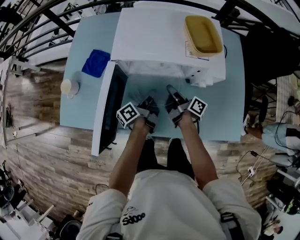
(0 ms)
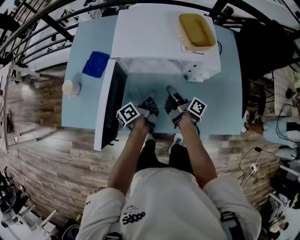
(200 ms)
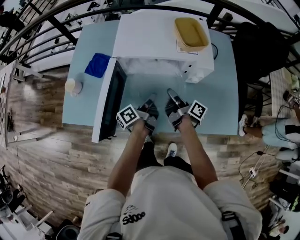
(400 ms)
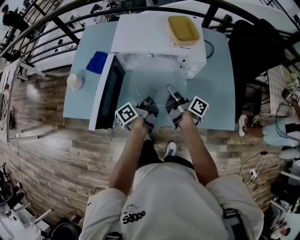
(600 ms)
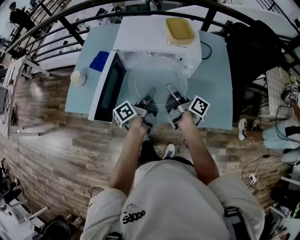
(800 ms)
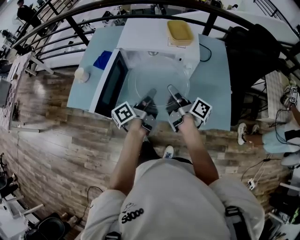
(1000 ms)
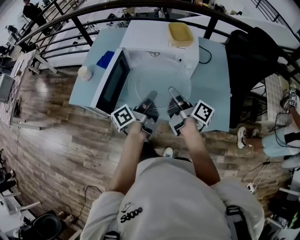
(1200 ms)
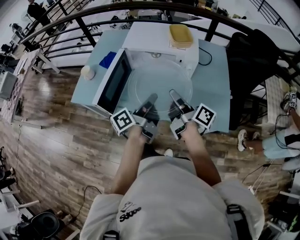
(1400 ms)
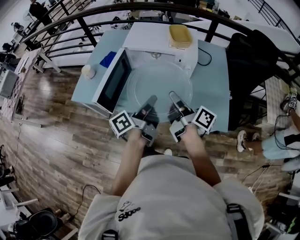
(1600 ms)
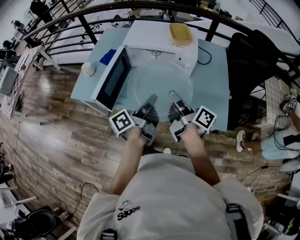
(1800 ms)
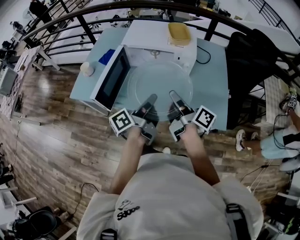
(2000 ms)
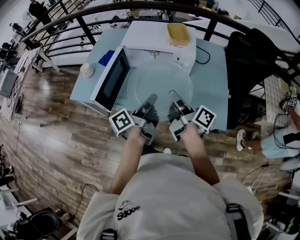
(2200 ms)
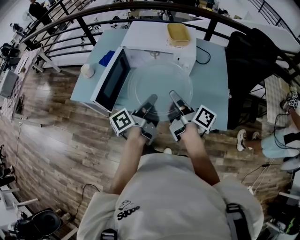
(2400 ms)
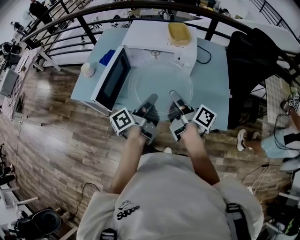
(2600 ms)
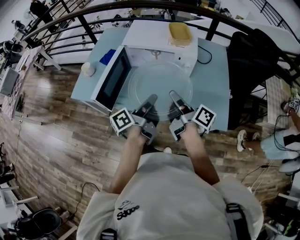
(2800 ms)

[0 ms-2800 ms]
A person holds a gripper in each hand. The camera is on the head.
0 ms to 1400 ms: The two grippers go approximately 30 cm backward and upward.
1400 ms to 2800 ms: The grippers make only small movements.

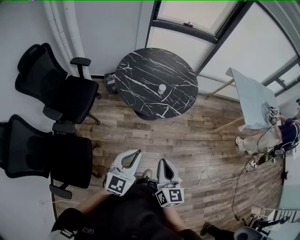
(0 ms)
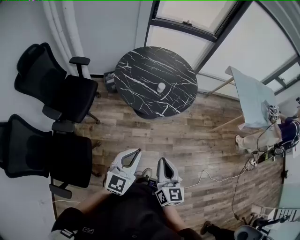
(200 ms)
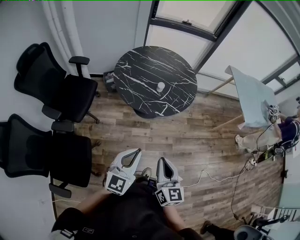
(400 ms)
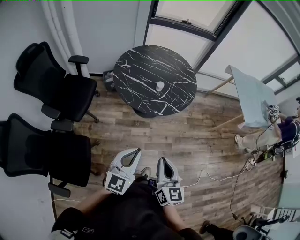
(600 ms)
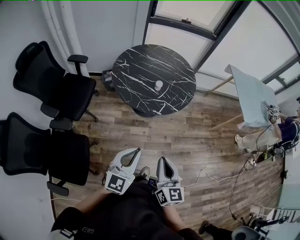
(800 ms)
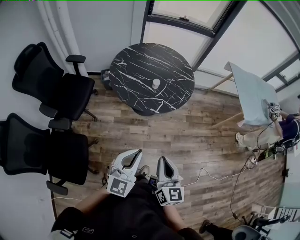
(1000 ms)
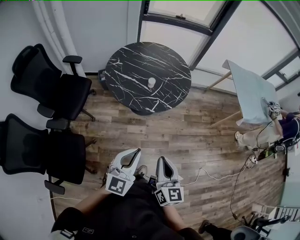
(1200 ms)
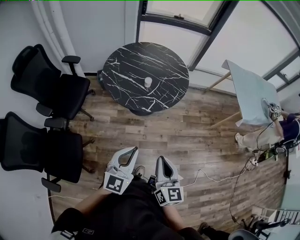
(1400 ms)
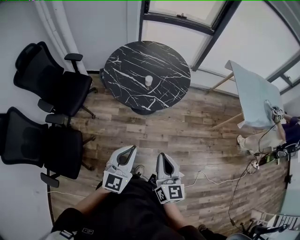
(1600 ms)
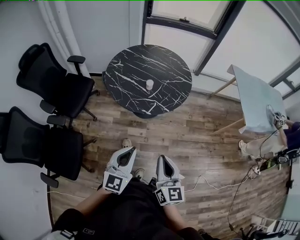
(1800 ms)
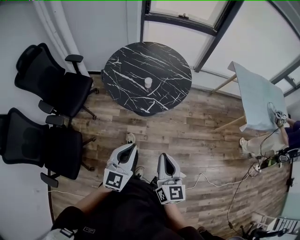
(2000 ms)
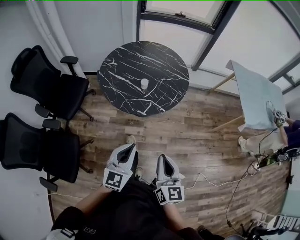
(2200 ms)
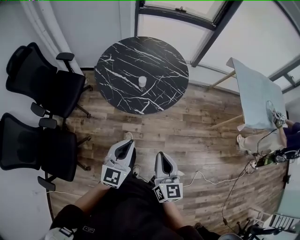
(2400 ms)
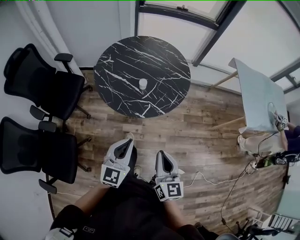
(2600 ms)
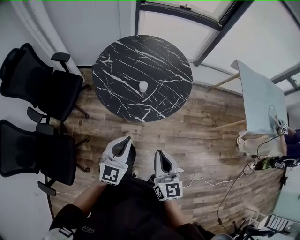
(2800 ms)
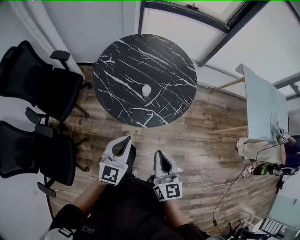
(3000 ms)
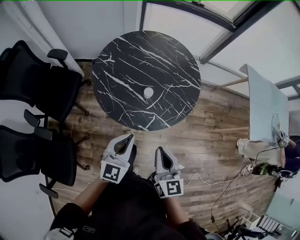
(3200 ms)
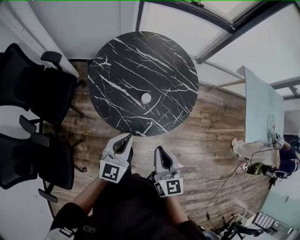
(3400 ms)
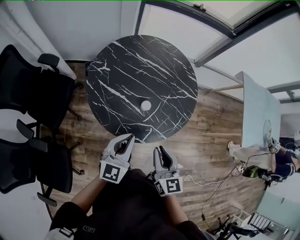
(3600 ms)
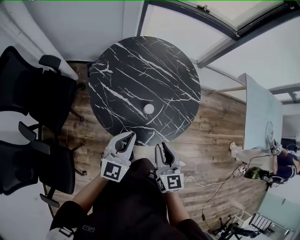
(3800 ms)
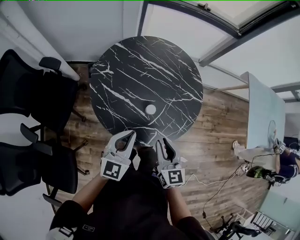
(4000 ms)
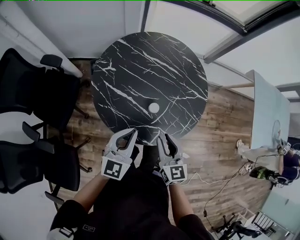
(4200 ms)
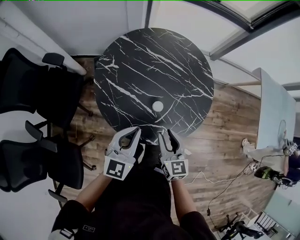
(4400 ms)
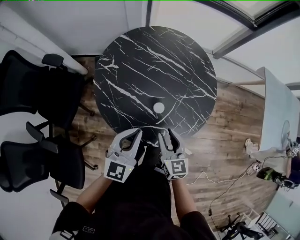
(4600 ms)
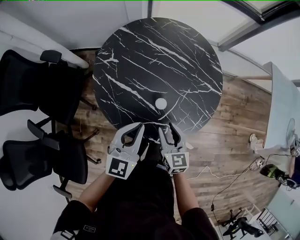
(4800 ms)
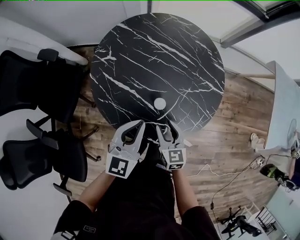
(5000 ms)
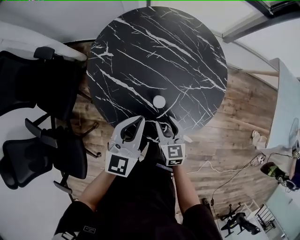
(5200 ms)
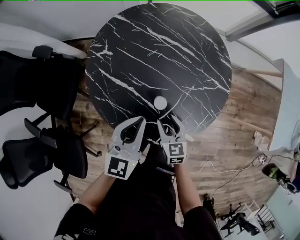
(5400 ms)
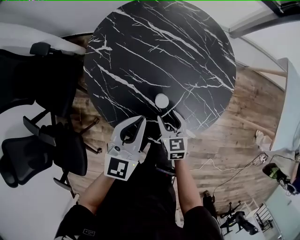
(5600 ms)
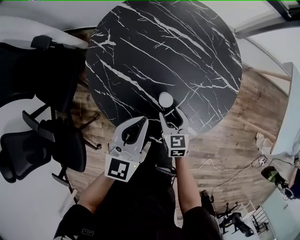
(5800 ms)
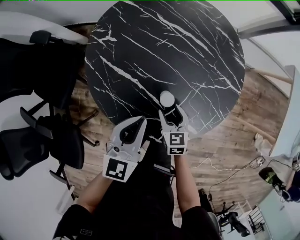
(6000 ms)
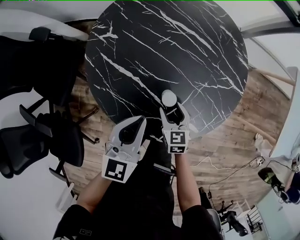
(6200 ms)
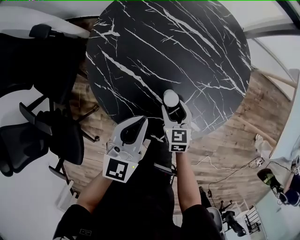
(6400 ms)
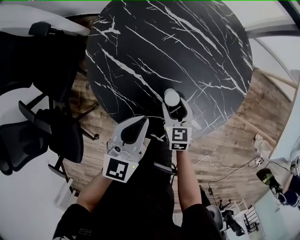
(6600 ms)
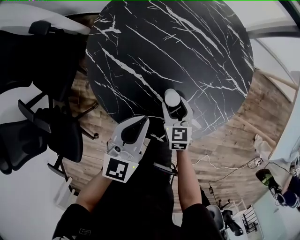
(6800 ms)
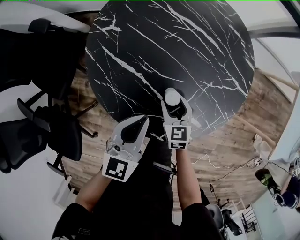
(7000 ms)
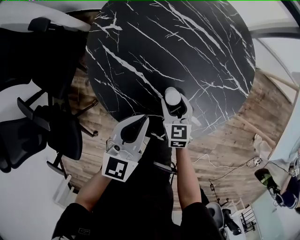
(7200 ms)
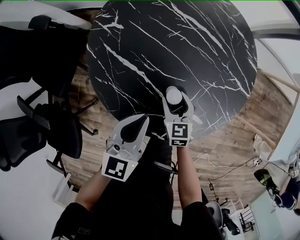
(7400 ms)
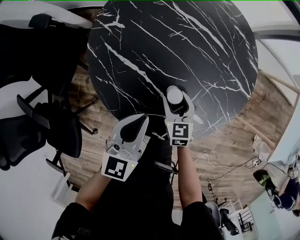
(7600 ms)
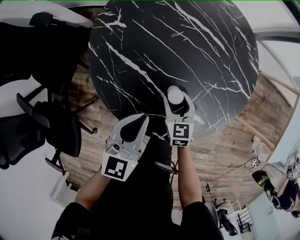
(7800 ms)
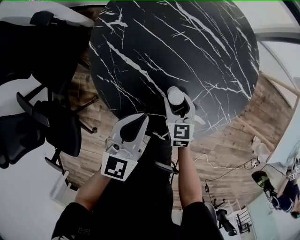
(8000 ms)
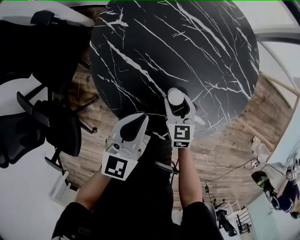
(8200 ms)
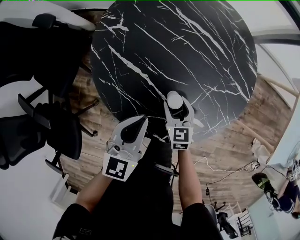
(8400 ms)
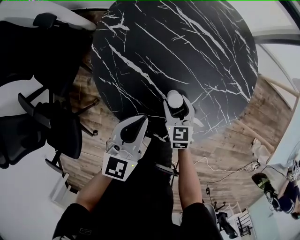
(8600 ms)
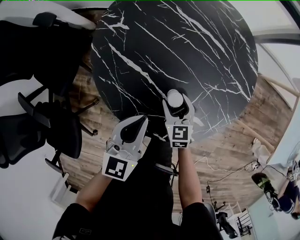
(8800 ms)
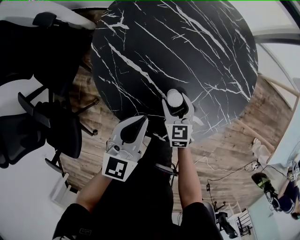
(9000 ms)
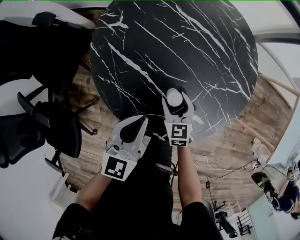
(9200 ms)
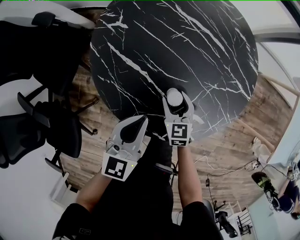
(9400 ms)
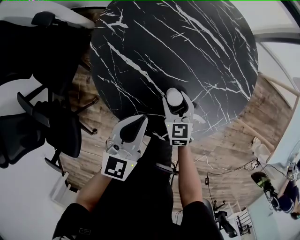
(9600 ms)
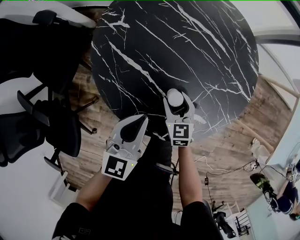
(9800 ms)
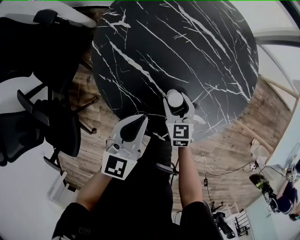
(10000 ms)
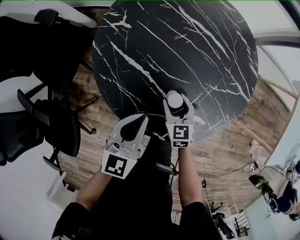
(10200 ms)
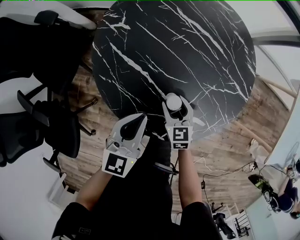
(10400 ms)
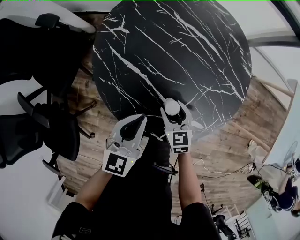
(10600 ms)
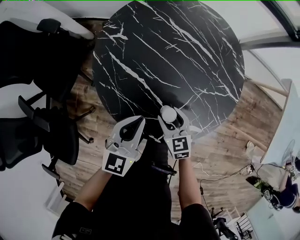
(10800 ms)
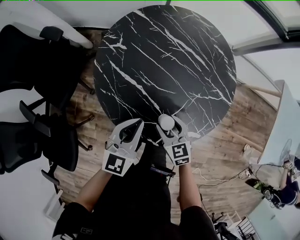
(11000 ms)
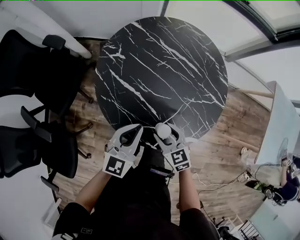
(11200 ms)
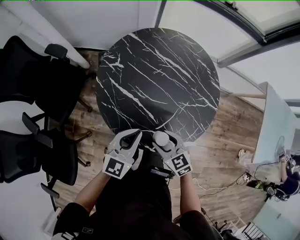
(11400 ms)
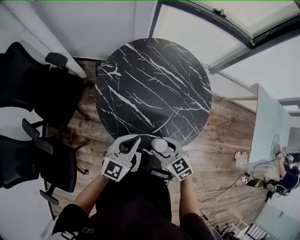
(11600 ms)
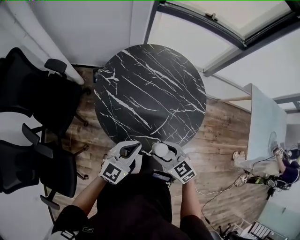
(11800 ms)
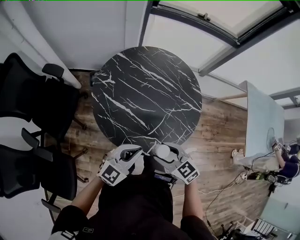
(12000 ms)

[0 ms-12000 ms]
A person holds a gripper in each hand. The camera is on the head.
0 ms to 1600 ms: The two grippers go some 15 cm to the right.
1600 ms to 3000 ms: Both grippers move forward, roughly 20 cm.
3000 ms to 4400 ms: The left gripper heads forward, covering approximately 20 cm. The right gripper goes roughly 25 cm forward and downward, and opens its fingers.
4400 ms to 6000 ms: The left gripper heads downward and forward, covering approximately 10 cm, while the right gripper travels downward by approximately 20 cm, swivels approximately 20 degrees, and opens its fingers.
6000 ms to 7600 ms: The grippers make only small movements.
7600 ms to 9000 ms: The two grippers keep their place.
9000 ms to 10400 ms: Both grippers stay about where they are.
10400 ms to 12000 ms: The right gripper goes roughly 30 cm upward and backward, and swivels roughly 20 degrees; the left gripper shifts some 15 cm upward and backward, and rotates about 30 degrees.

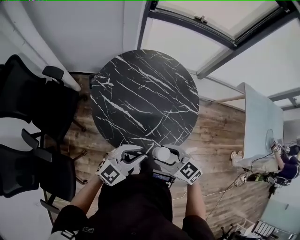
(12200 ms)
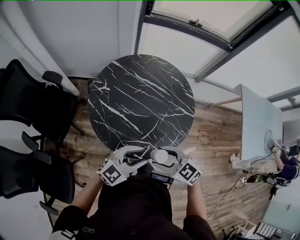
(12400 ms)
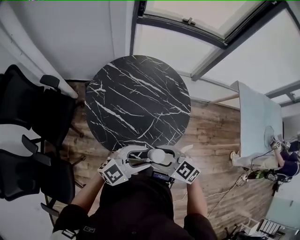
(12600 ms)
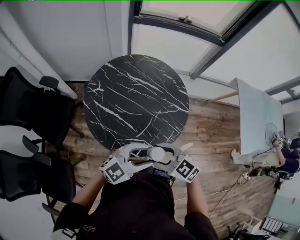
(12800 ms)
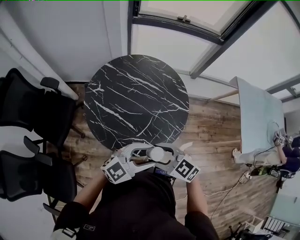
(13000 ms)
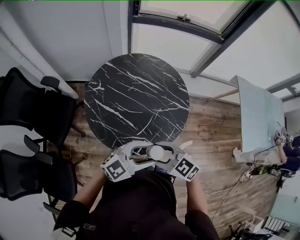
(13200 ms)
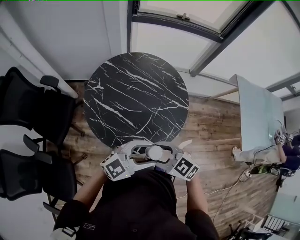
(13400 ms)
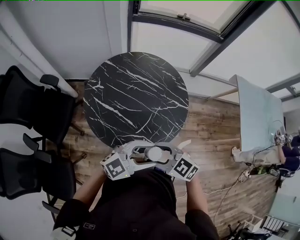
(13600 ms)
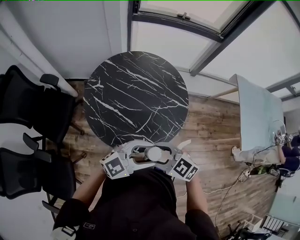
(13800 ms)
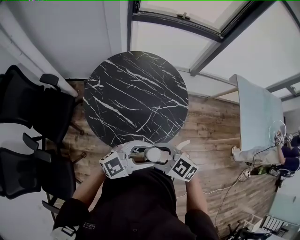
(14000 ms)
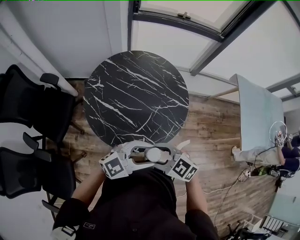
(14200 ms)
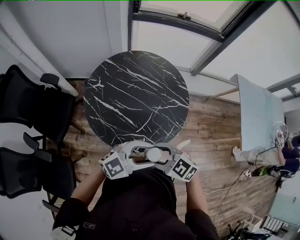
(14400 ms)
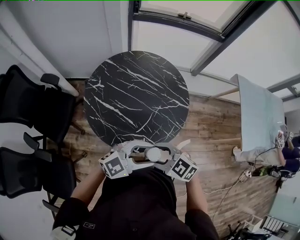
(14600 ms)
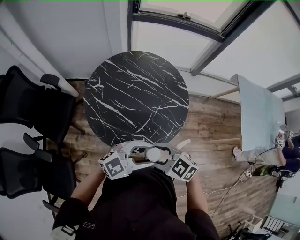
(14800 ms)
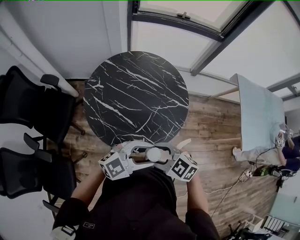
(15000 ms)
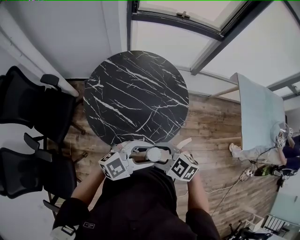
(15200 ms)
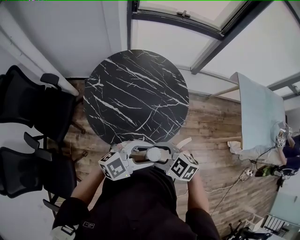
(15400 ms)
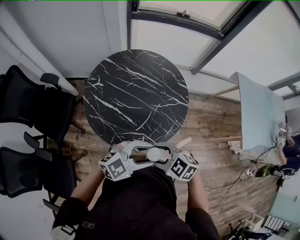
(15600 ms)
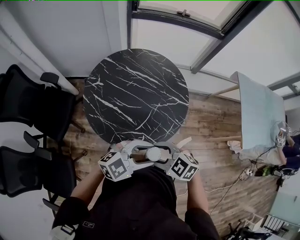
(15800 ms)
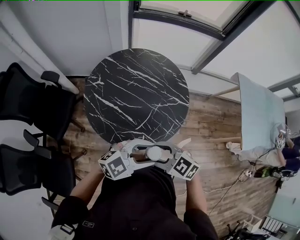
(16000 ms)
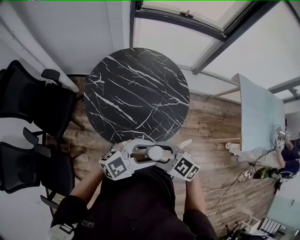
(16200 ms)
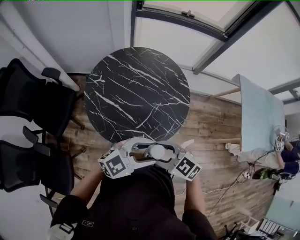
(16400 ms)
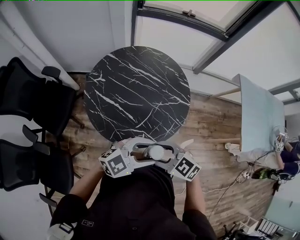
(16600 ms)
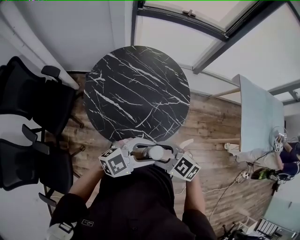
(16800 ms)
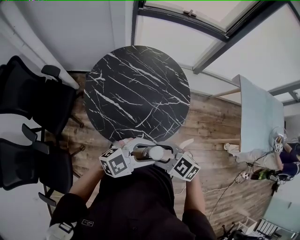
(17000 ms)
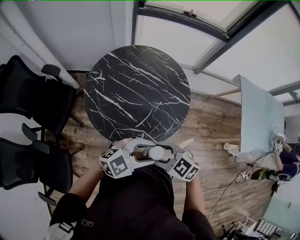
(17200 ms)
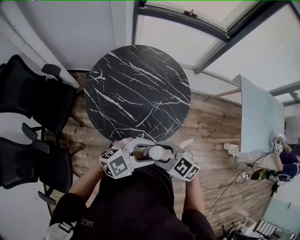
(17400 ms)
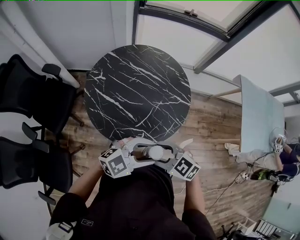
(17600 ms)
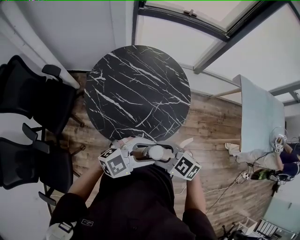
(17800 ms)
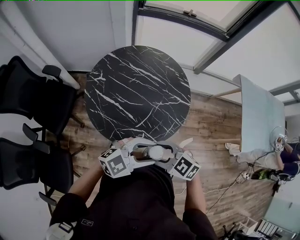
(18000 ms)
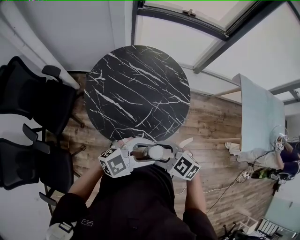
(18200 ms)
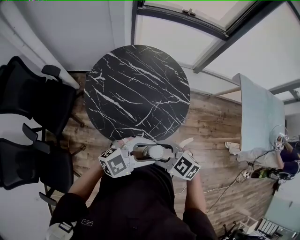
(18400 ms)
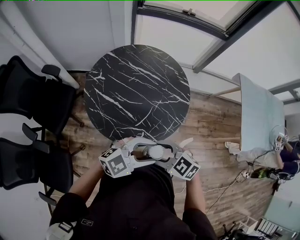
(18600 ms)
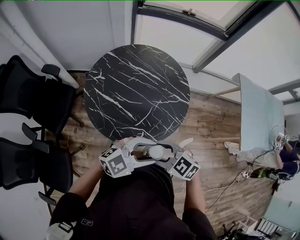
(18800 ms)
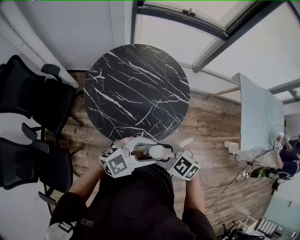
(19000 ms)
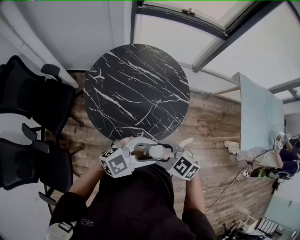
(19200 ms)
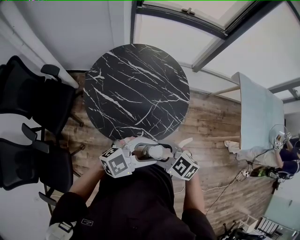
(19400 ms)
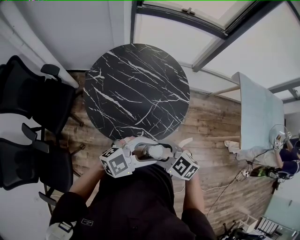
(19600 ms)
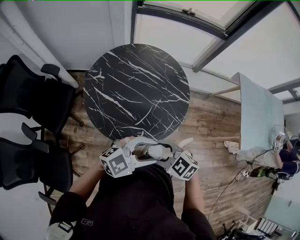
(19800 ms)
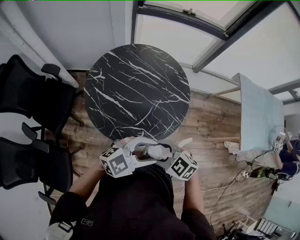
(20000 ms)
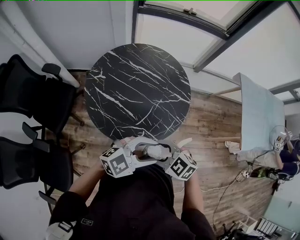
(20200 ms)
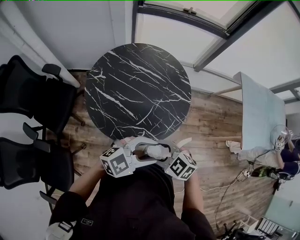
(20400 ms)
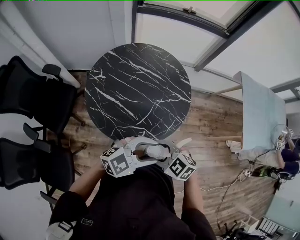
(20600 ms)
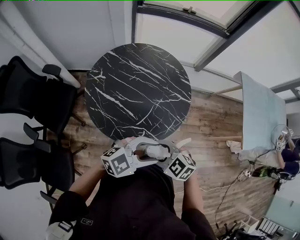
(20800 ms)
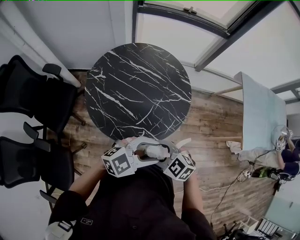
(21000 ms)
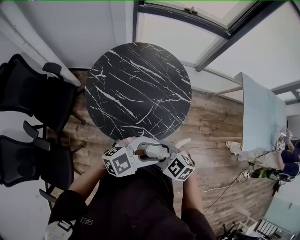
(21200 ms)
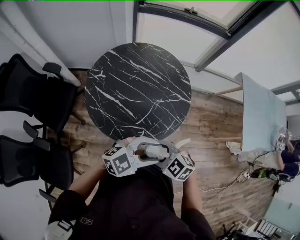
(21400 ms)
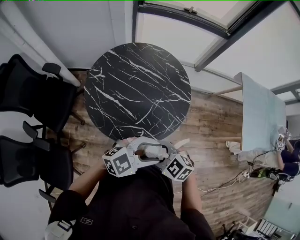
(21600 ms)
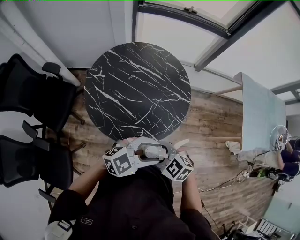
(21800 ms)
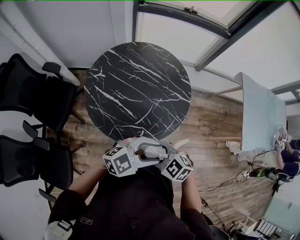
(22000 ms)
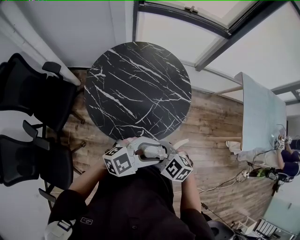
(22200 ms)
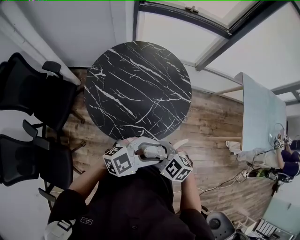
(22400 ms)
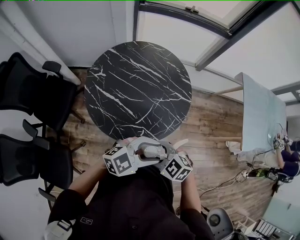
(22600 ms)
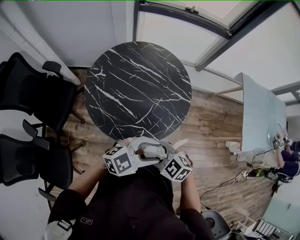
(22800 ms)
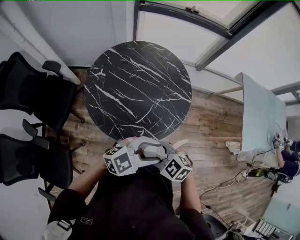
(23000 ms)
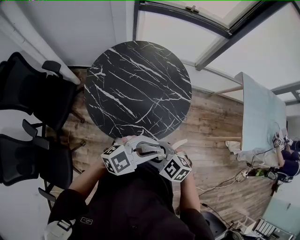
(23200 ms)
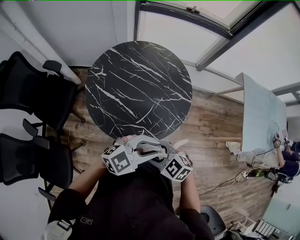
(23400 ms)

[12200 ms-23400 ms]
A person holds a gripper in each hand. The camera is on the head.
12200 ms to 13800 ms: The right gripper travels upward by roughly 5 cm. The left gripper shifts by roughly 15 cm, changes its angle by approximately 20 degrees, and opens.
13800 ms to 17000 ms: There are only small adjustments of the grippers.
17000 ms to 18600 ms: The two grippers keep their place.
18600 ms to 21800 ms: The grippers make only small movements.
21800 ms to 23400 ms: The left gripper closes its fingers.
